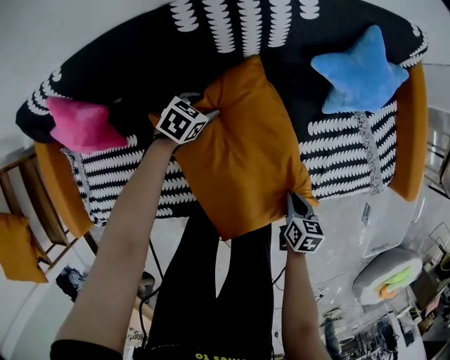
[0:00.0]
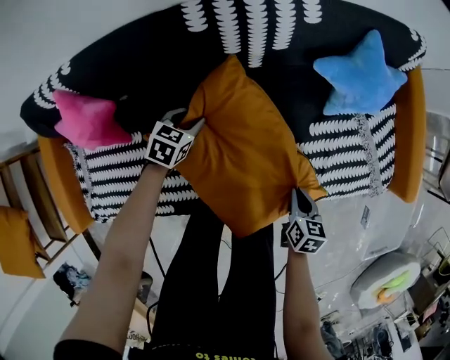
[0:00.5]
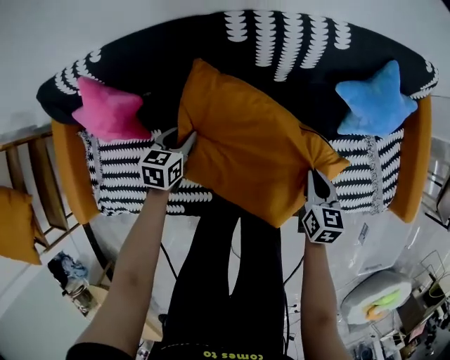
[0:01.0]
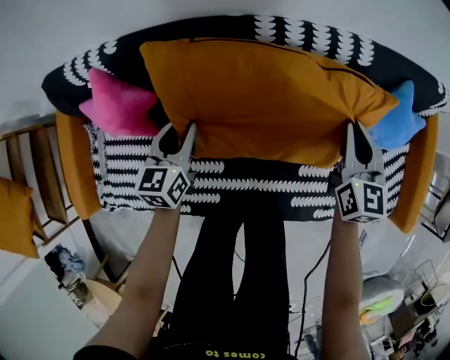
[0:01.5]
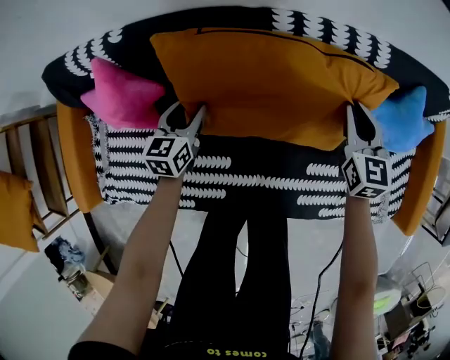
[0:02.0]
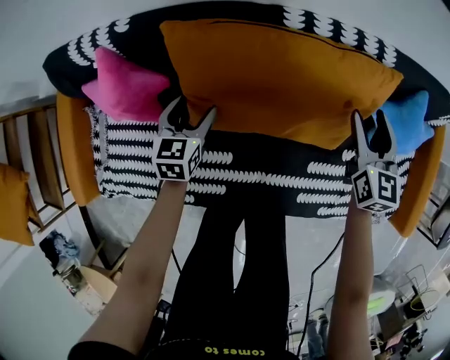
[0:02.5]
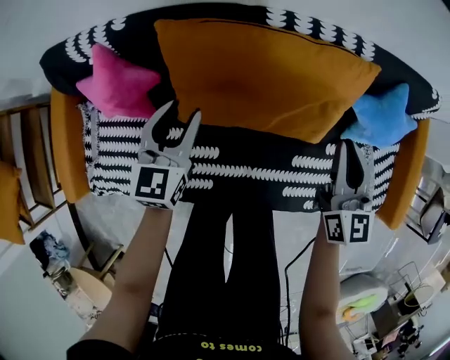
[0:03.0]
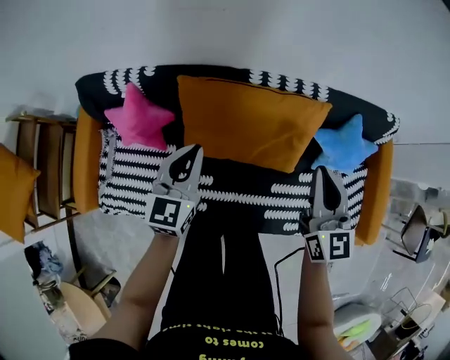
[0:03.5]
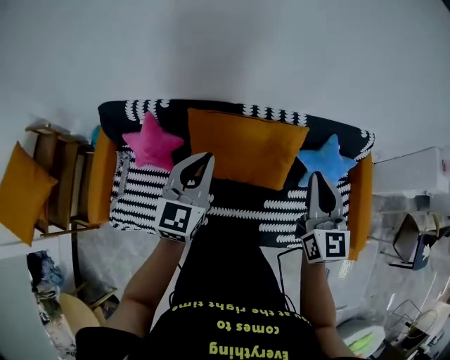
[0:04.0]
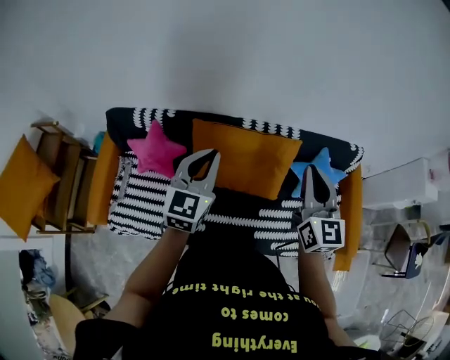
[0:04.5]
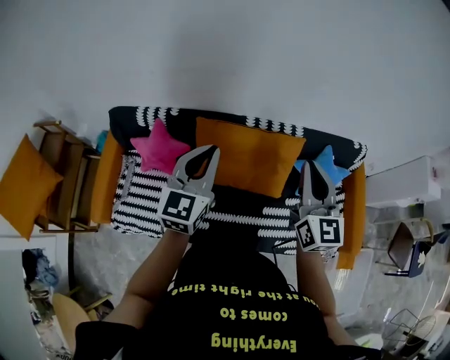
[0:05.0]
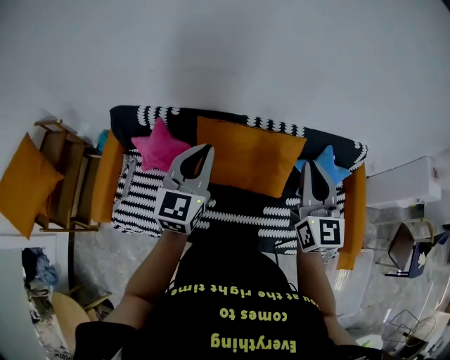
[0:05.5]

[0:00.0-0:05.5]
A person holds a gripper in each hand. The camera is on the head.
0:00.0 to 0:02.0: The right gripper ends up roughly 40 cm from where it was, and angles its fingers upward, by about 30 degrees, while the left gripper changes place by roughly 20 cm, and turns by roughly 50 degrees.
0:02.0 to 0:03.5: The left gripper heads upward, covering about 30 cm, swivels some 20 degrees, and closes its fingers; the right gripper is displaced upward and backward by about 30 cm, and opens, then closes again.
0:03.5 to 0:05.5: The two grippers go some 20 cm upward.

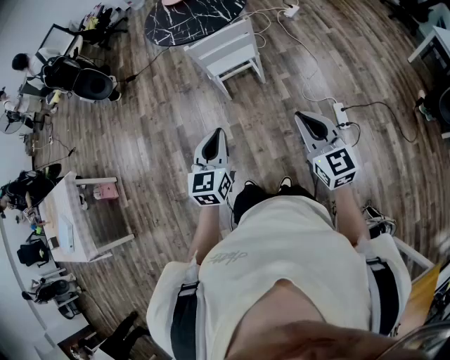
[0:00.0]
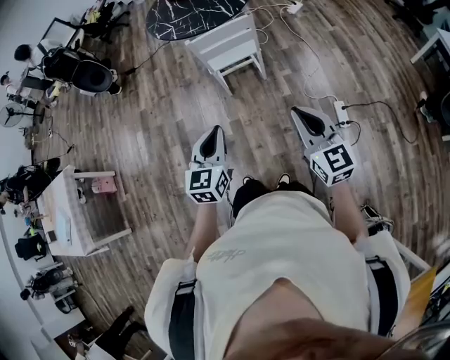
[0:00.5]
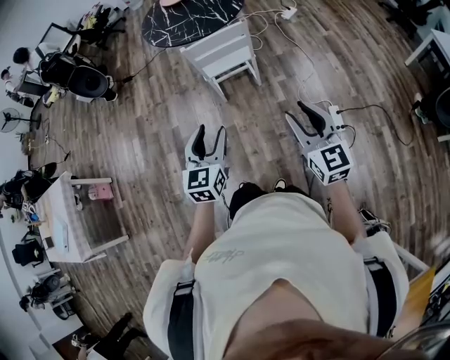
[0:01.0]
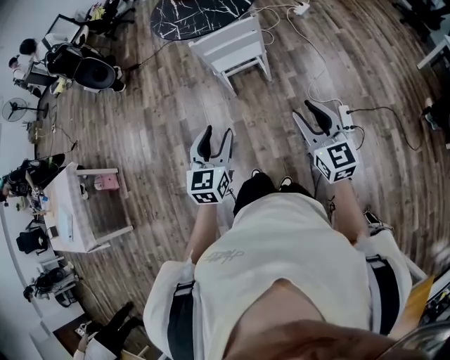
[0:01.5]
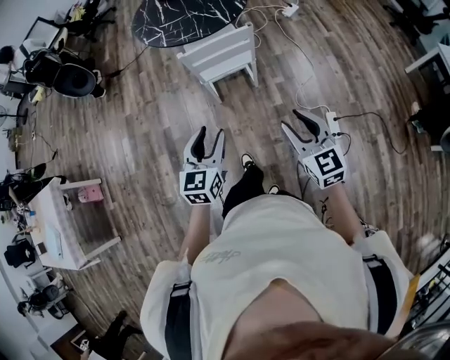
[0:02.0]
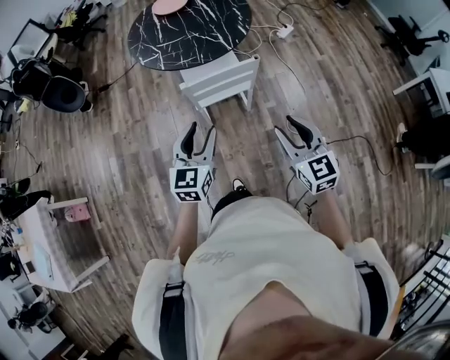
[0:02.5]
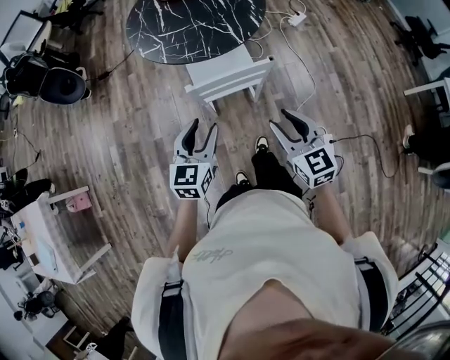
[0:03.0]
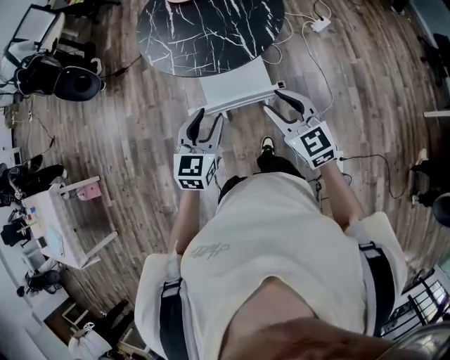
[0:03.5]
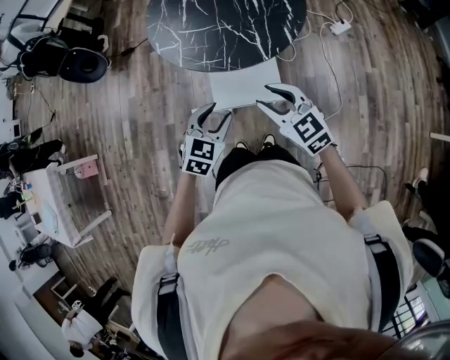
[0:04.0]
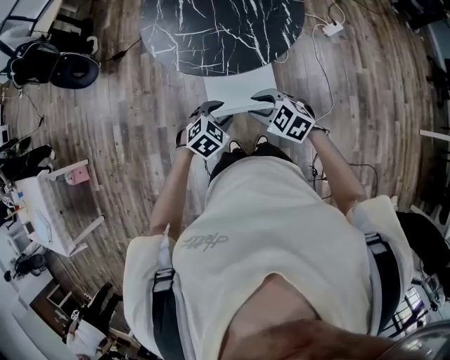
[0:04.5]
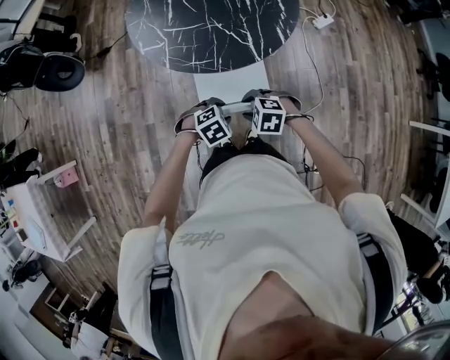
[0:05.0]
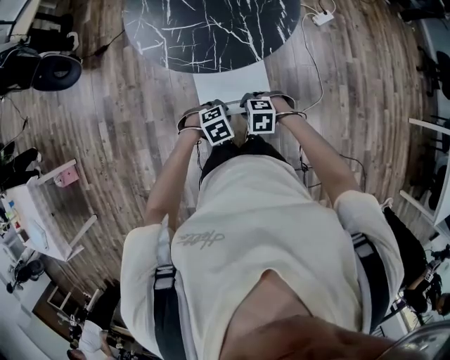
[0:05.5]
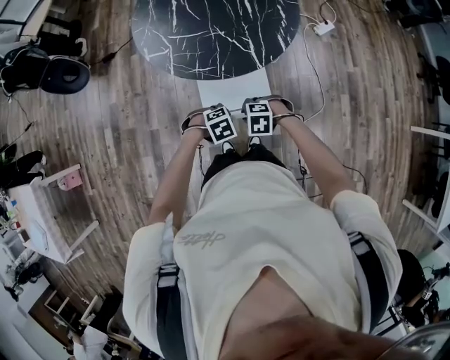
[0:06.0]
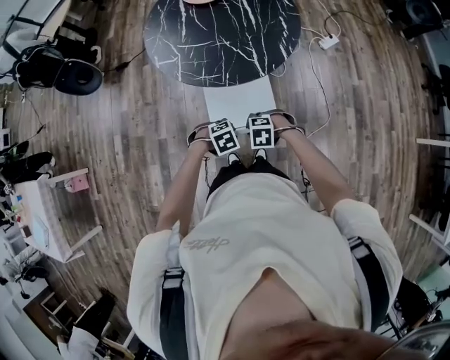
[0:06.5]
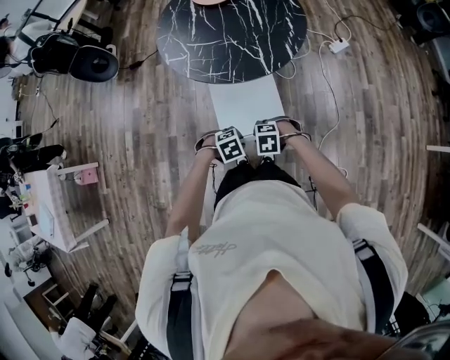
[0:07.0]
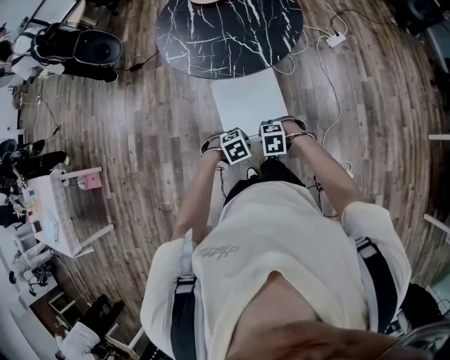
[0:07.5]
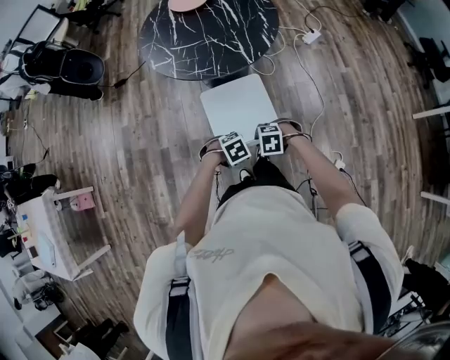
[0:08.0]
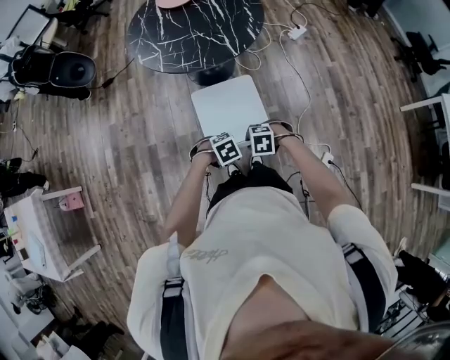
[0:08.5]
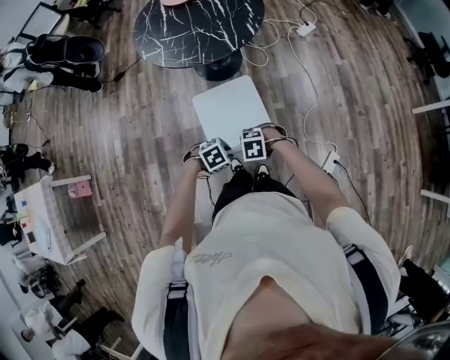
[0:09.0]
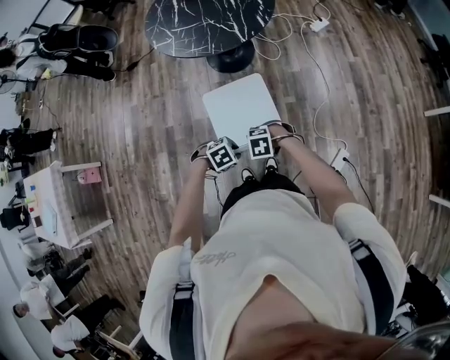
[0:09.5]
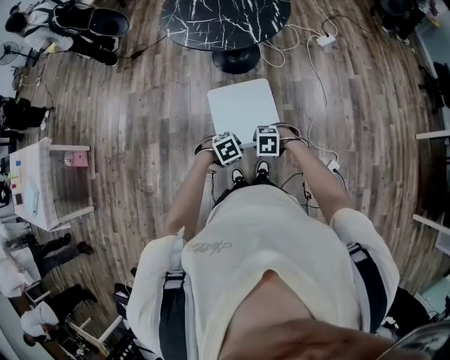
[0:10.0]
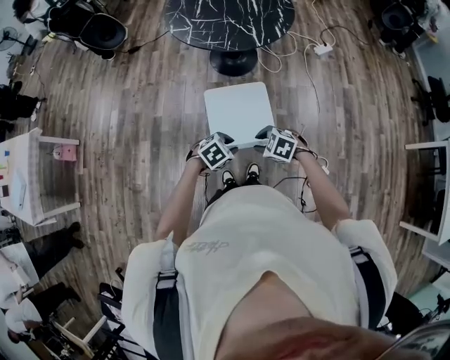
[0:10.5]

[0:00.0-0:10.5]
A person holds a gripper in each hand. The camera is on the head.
0:00.0 to 0:02.0: Both grippers travel together forward, approximately 10 cm. The right gripper opens. Meanwhile the left gripper opens its fingers.
0:02.0 to 0:04.0: The two grippers travel together, forward, about 40 cm. The right gripper turns by roughly 30 degrees. Meanwhile the left gripper turns by some 30 degrees.
0:04.0 to 0:06.5: Both grippers move downward, roughly 20 cm. The right gripper angles its fingers downward, by about 50 degrees, and closes. The left gripper points its fingers roughly 40 degrees further downward, and closes.
0:06.5 to 0:08.5: The right gripper changes place by about 20 cm, while the left gripper moves about 20 cm.
0:08.5 to 0:10.5: The left gripper moves approximately 10 cm, and swivels some 30 degrees. The right gripper moves roughly 10 cm.

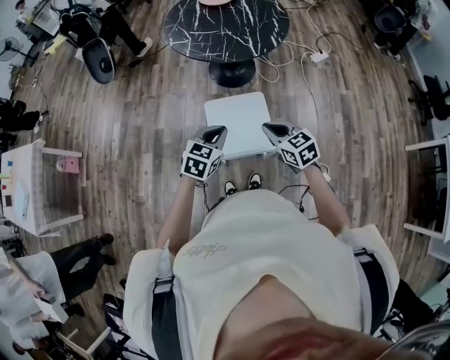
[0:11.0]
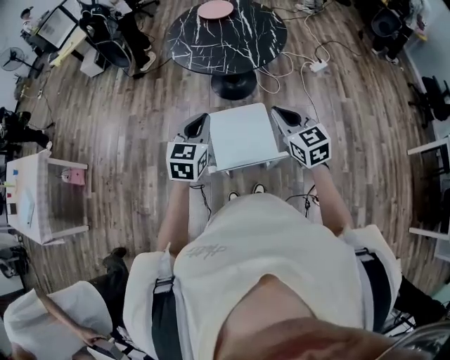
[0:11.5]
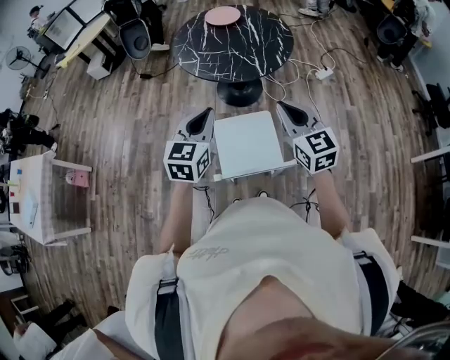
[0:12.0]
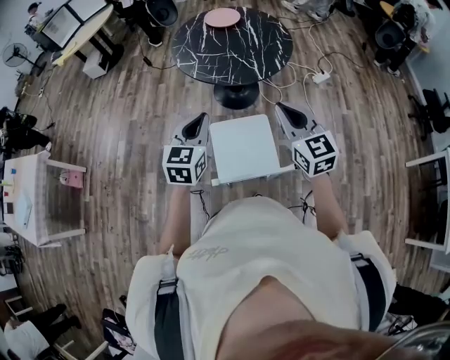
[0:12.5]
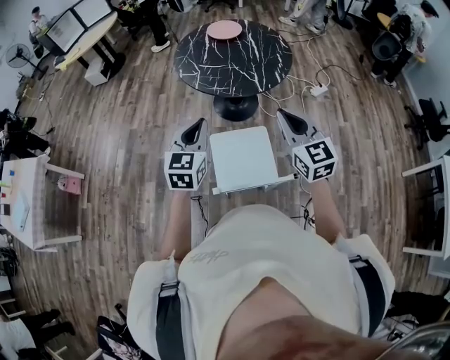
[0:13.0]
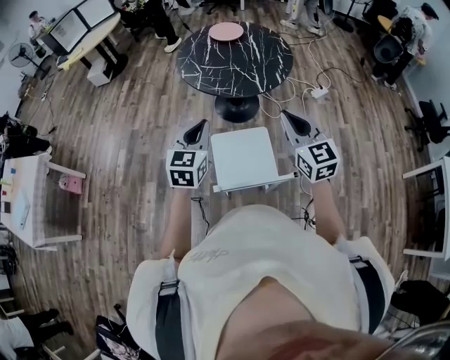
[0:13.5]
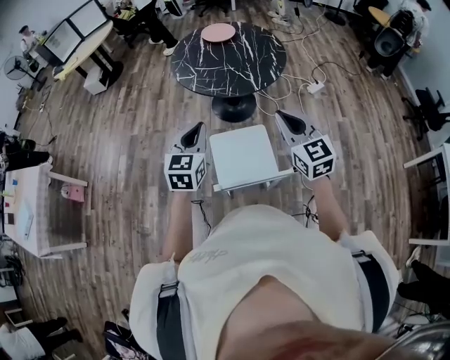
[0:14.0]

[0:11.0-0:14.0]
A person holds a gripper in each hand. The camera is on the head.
0:11.0 to 0:12.5: The right gripper is displaced upward by approximately 20 cm, and turns by some 30 degrees. Meanwhile the left gripper heads upward, forward and to the left, covering approximately 15 cm, and swivels approximately 20 degrees.
0:12.5 to 0:14.0: The grippers stay close to where they were, moving slightly.

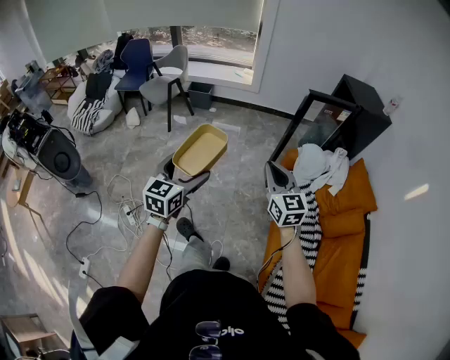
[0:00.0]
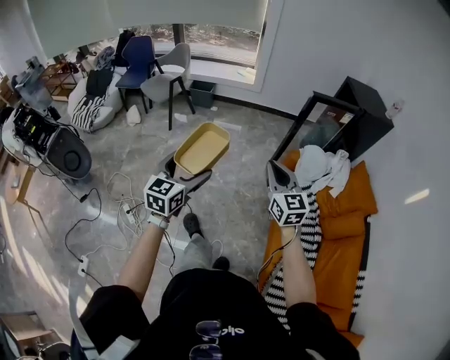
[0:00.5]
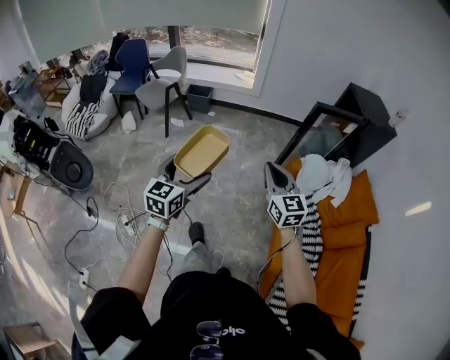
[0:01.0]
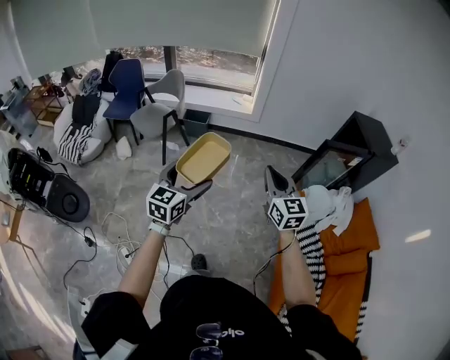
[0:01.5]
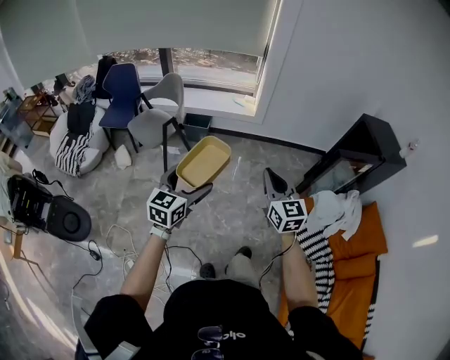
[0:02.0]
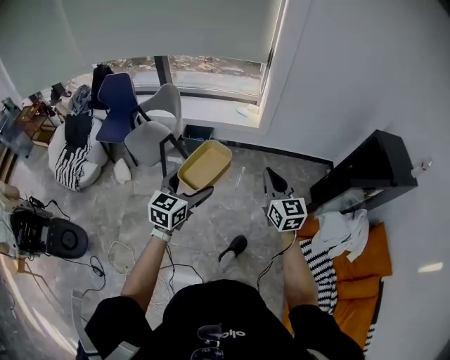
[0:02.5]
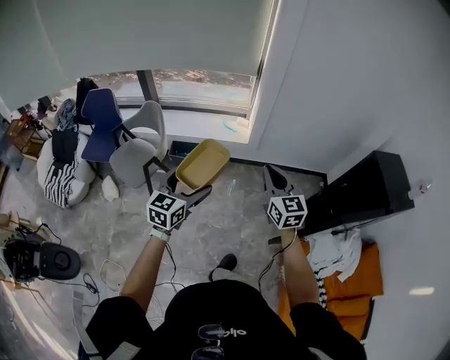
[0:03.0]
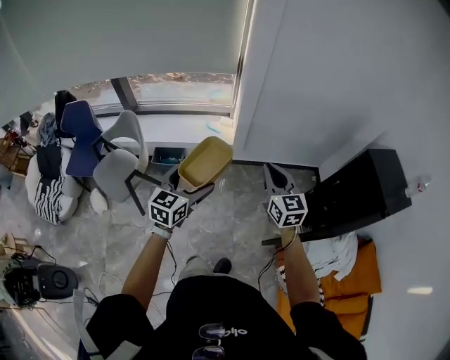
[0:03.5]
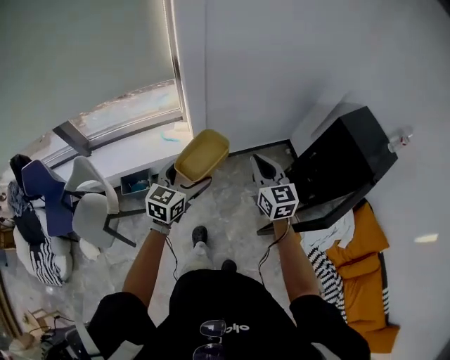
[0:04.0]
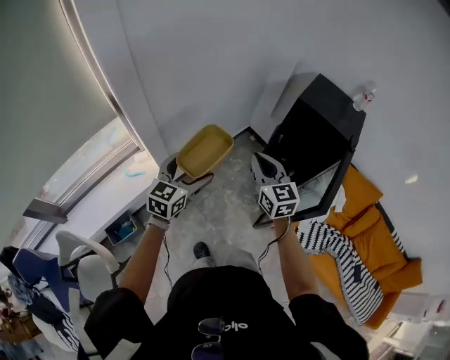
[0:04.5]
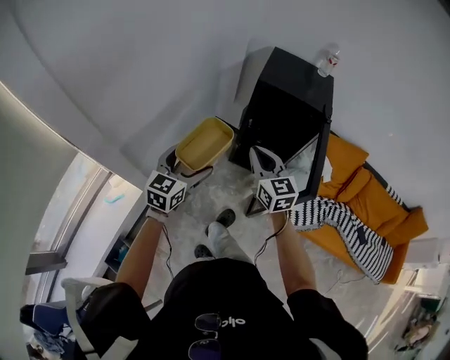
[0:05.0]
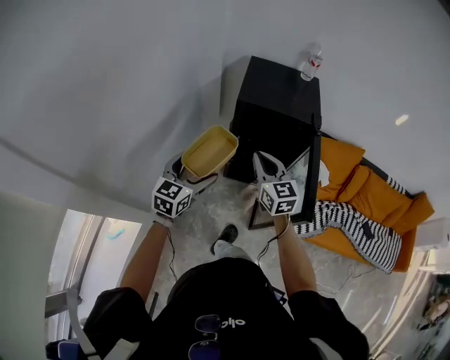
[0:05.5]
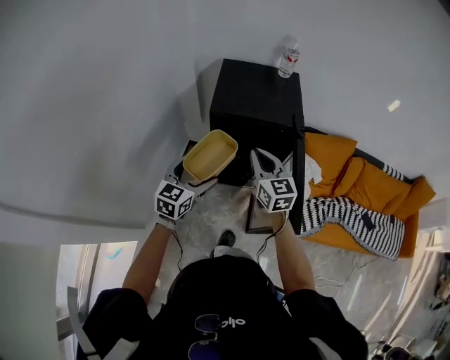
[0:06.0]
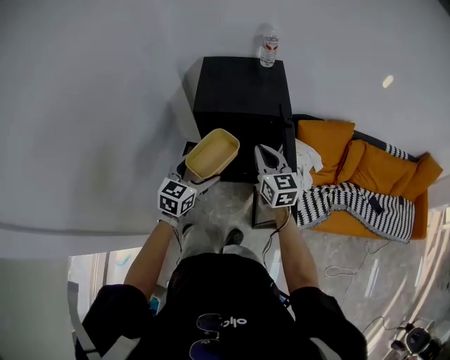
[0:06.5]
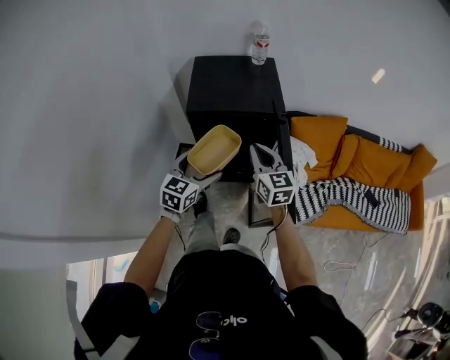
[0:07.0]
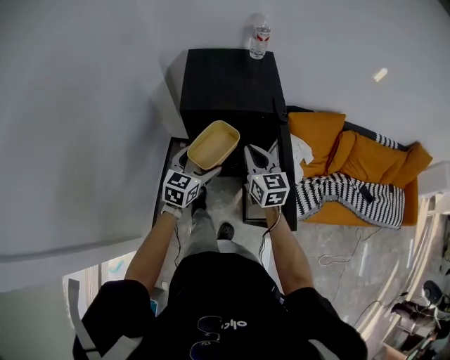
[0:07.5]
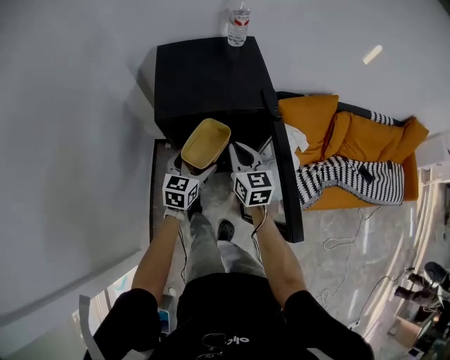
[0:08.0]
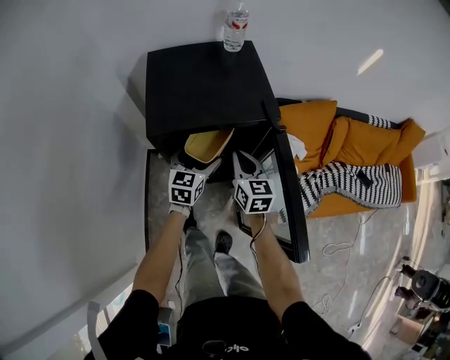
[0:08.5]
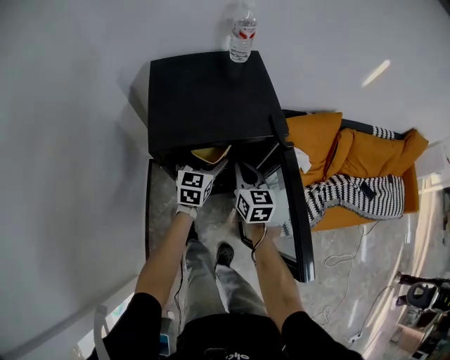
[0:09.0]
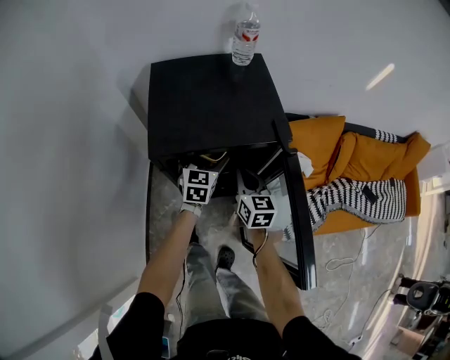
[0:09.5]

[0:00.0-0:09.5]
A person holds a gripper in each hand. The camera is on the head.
0:00.0 to 0:02.0: The two grippers travel together, forward and to the left, approximately 40 cm.
0:02.0 to 0:04.0: The pair of grippers is taken forward, approximately 60 cm. The right gripper turns by about 20 degrees. Meanwhile the left gripper turns by about 30 degrees.
0:04.0 to 0:05.5: The left gripper changes place by some 40 cm, and rotates about 50 degrees. The right gripper moves approximately 35 cm, and turns by roughly 50 degrees.
0:05.5 to 0:07.5: The grippers both shift forward, to the right and downward by about 20 cm.
0:07.5 to 0:09.5: The left gripper shifts approximately 25 cm forward and downward. The right gripper shifts roughly 20 cm downward and forward.
